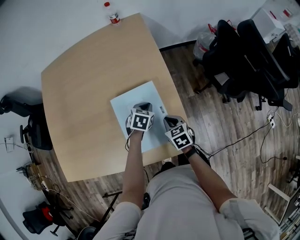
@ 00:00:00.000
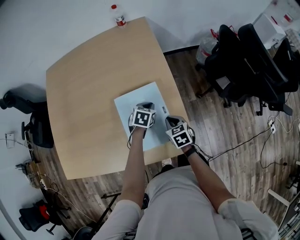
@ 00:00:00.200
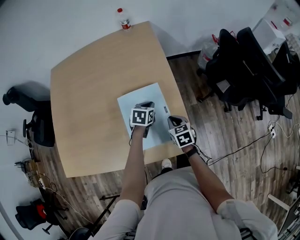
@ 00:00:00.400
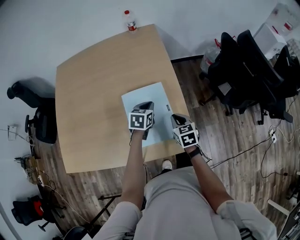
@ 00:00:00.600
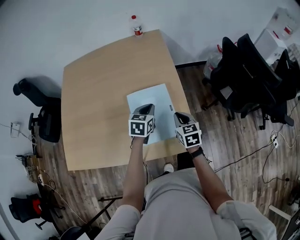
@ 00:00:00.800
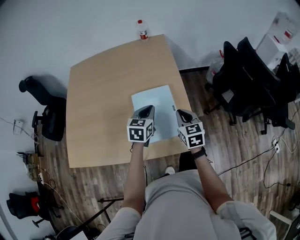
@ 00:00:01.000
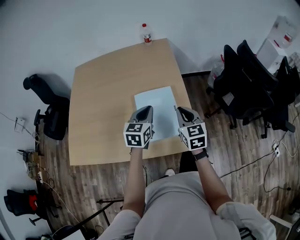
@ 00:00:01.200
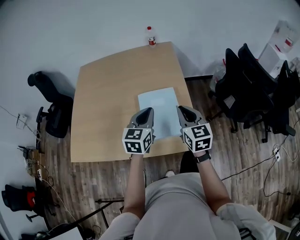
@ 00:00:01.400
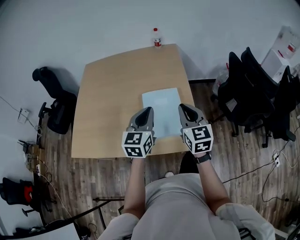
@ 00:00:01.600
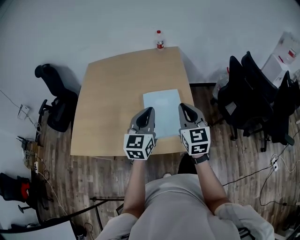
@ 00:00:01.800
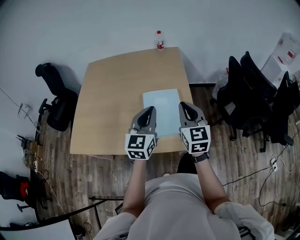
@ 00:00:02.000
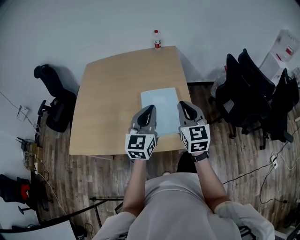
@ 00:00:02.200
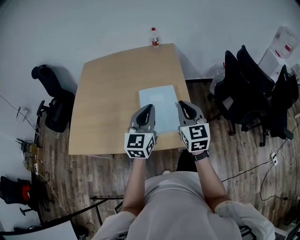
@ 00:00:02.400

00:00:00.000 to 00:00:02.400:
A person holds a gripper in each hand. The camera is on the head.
00:00:00.000 to 00:00:01.200: The right gripper is displaced upward by approximately 20 cm, and rotates some 30 degrees. The left gripper goes approximately 25 cm upward and backward, and angles its fingers upward, by roughly 30 degrees.
00:00:01.200 to 00:00:02.400: Both grippers move upward and backward, roughly 10 cm. The left gripper rotates about 20 degrees.

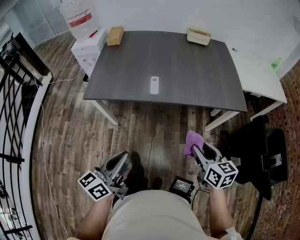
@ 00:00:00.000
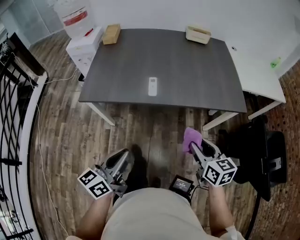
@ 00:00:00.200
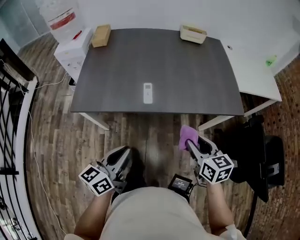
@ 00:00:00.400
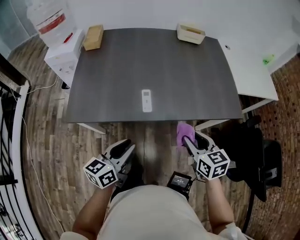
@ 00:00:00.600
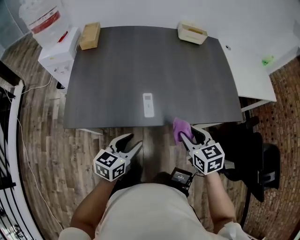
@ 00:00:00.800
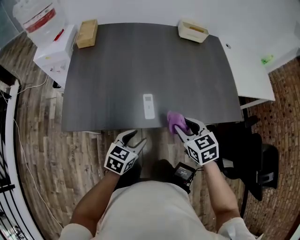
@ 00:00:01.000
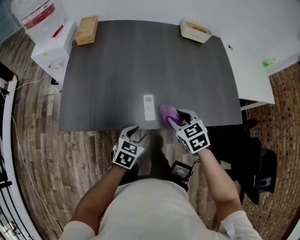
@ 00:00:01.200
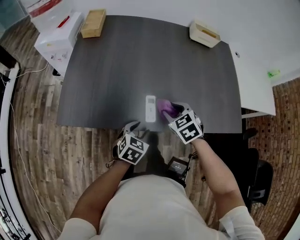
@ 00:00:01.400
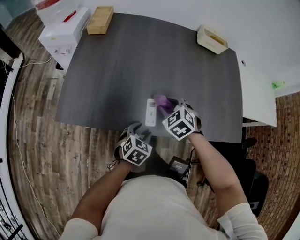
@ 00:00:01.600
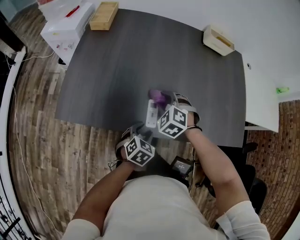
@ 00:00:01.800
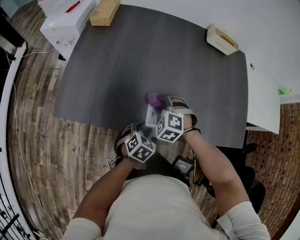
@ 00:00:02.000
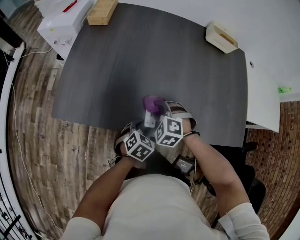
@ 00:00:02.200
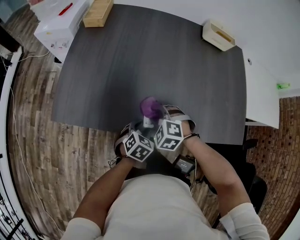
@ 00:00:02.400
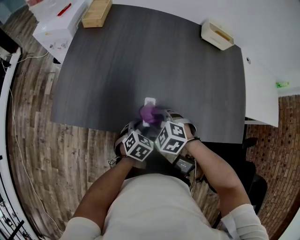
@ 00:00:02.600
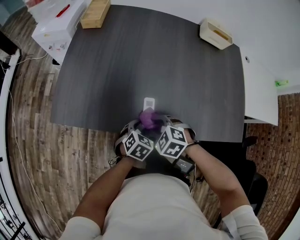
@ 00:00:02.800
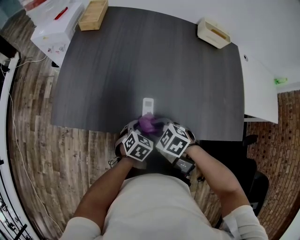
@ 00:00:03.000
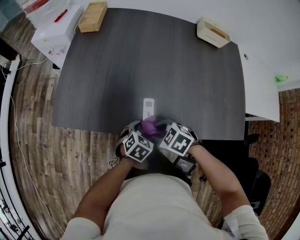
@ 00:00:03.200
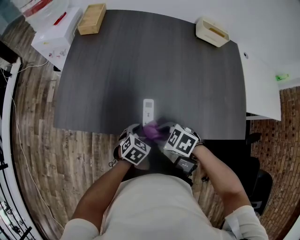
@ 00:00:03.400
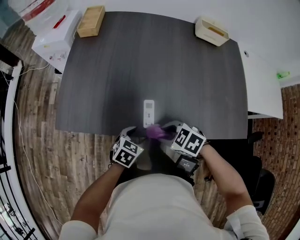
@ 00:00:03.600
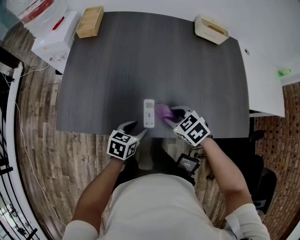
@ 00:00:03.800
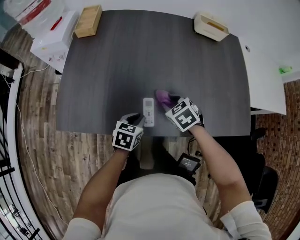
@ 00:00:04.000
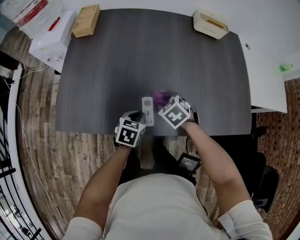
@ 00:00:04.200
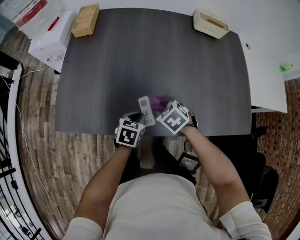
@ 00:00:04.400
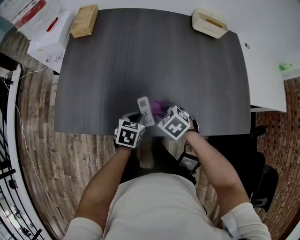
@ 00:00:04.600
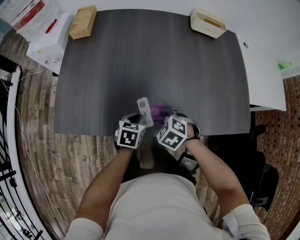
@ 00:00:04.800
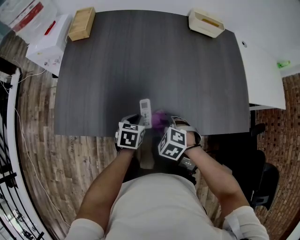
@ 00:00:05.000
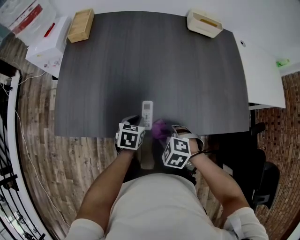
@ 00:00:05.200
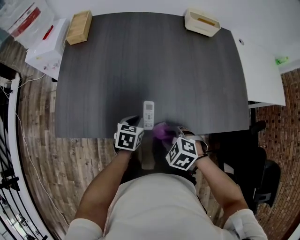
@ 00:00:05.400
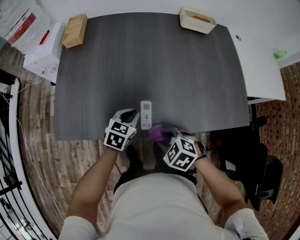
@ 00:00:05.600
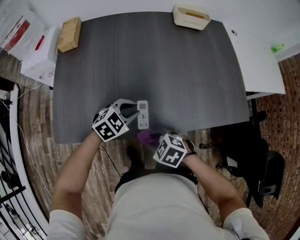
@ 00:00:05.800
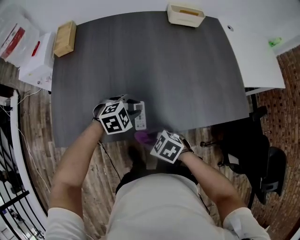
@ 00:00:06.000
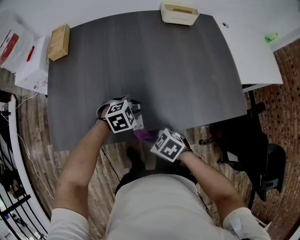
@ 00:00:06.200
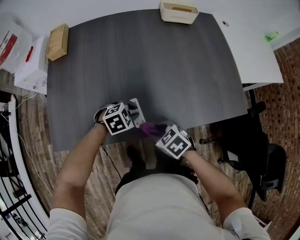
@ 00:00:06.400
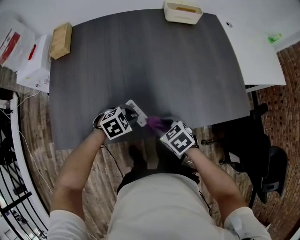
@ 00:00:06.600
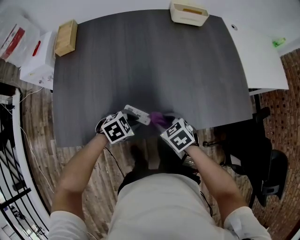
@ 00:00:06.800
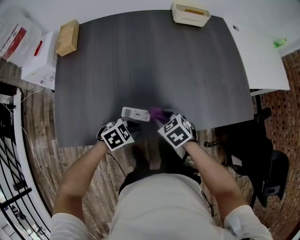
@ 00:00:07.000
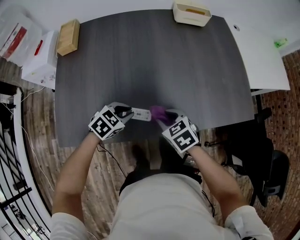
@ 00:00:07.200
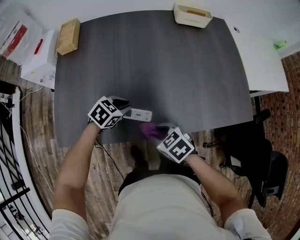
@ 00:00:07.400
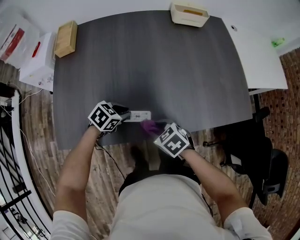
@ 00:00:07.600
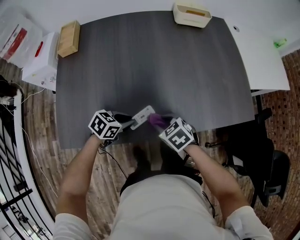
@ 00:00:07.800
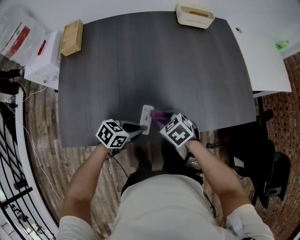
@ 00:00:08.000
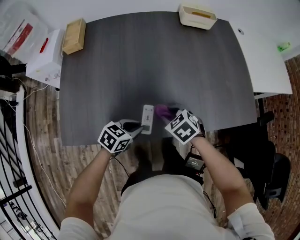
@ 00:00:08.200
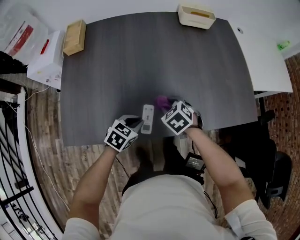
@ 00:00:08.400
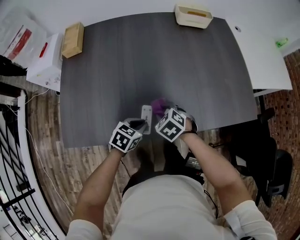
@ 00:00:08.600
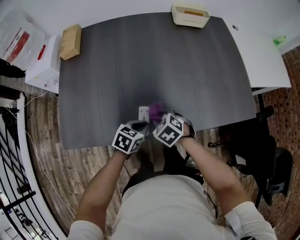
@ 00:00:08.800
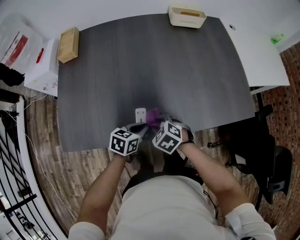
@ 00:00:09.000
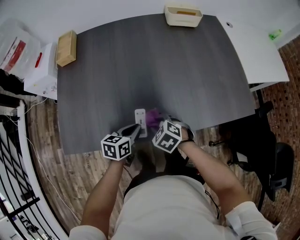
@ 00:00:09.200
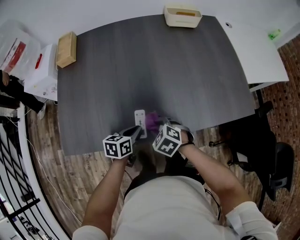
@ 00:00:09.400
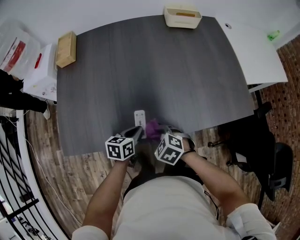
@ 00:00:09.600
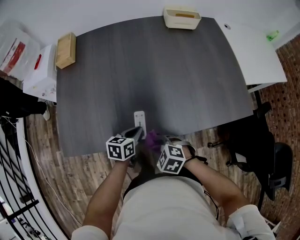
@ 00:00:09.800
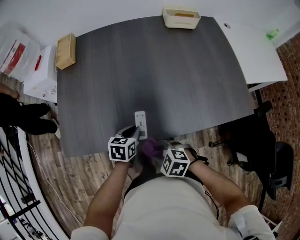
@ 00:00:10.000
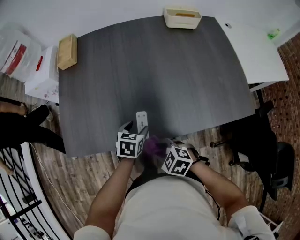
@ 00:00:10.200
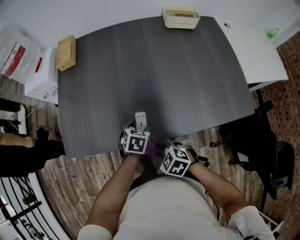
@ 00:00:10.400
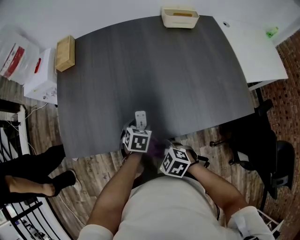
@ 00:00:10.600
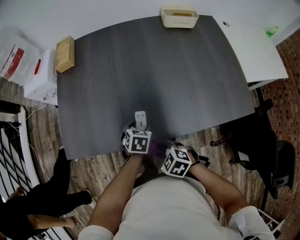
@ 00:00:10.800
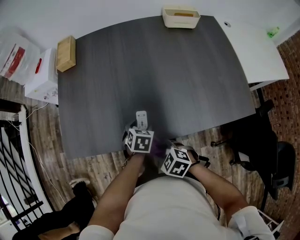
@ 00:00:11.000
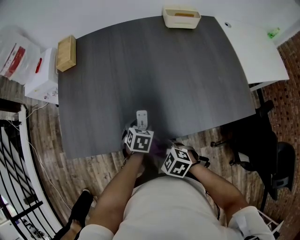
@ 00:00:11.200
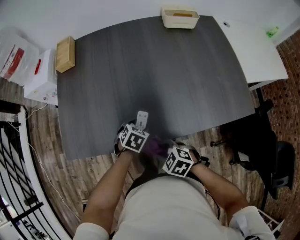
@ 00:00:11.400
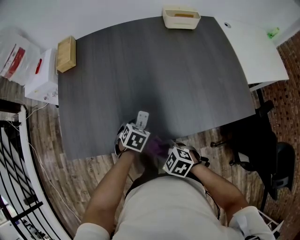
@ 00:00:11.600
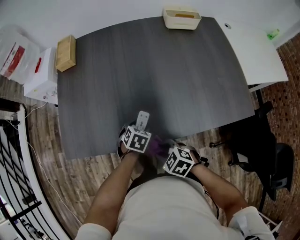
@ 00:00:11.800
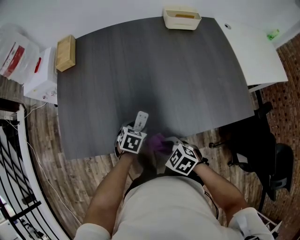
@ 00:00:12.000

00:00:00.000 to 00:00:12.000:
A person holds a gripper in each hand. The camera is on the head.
00:00:00.000 to 00:00:01.600: The left gripper heads forward and downward, covering some 40 cm, tilts its fingers roughly 40 degrees downward, and opens its fingers, while the right gripper is displaced forward and to the left by about 40 cm, and twists roughly 50 degrees counterclockwise, seen from behind.
00:00:01.600 to 00:00:03.000: The right gripper changes place by some 15 cm, and turns by roughly 30 degrees.
00:00:03.000 to 00:00:04.400: The left gripper moves about 5 cm, and closes up. The right gripper moves some 10 cm.
00:00:04.400 to 00:00:06.000: The right gripper ends up roughly 15 cm from where it was. Meanwhile the left gripper goes some 5 cm upward, and rotates around the line of its fingers by about 60 degrees, clockwise from behind.
00:00:06.000 to 00:00:07.600: The left gripper changes place by about 10 cm, and swivels approximately 40 degrees.
00:00:07.600 to 00:00:09.000: The left gripper ends up roughly 10 cm from where it was, and swivels roughly 30 degrees.
00:00:09.000 to 00:00:10.400: The right gripper goes about 10 cm backward. Meanwhile the left gripper rotates roughly 30 degrees, and opens its fingers.
00:00:10.400 to 00:00:12.000: The grippers move only a little.

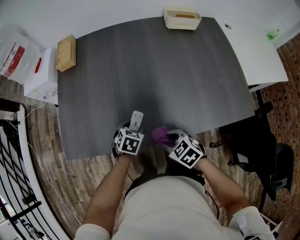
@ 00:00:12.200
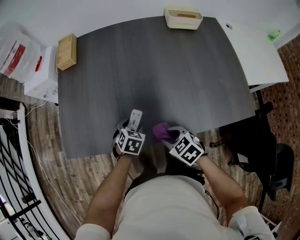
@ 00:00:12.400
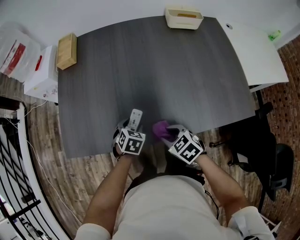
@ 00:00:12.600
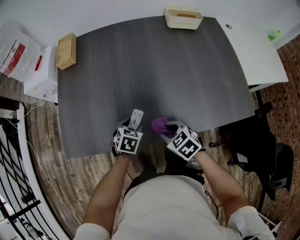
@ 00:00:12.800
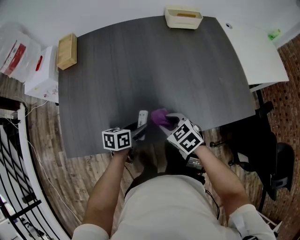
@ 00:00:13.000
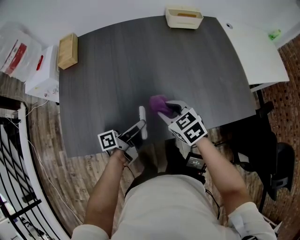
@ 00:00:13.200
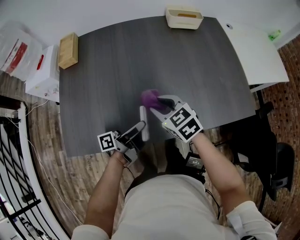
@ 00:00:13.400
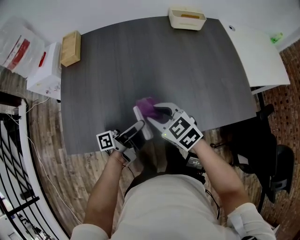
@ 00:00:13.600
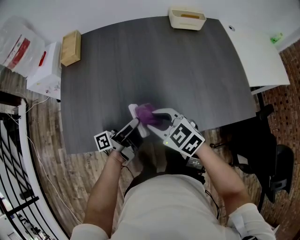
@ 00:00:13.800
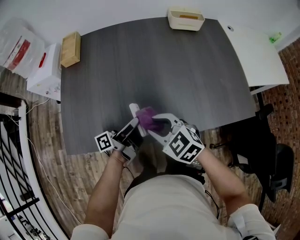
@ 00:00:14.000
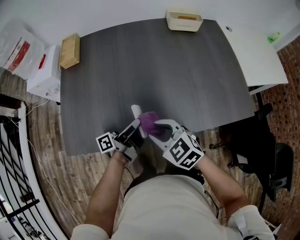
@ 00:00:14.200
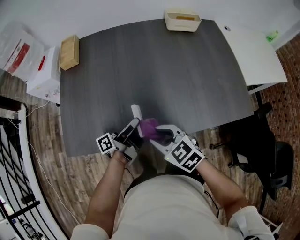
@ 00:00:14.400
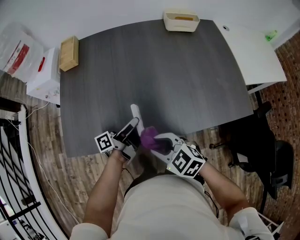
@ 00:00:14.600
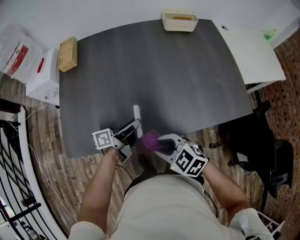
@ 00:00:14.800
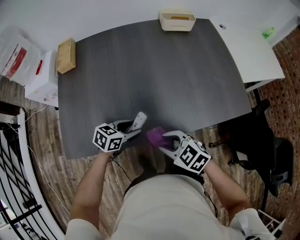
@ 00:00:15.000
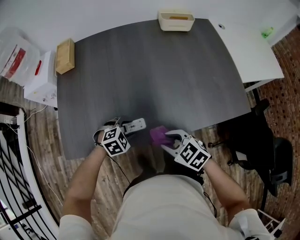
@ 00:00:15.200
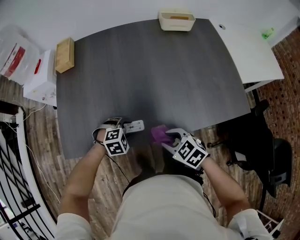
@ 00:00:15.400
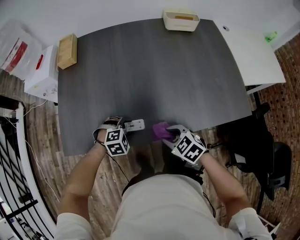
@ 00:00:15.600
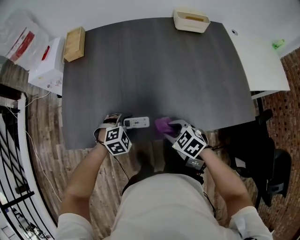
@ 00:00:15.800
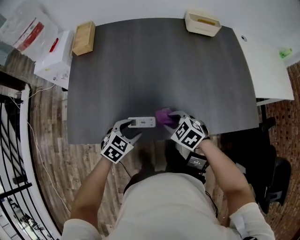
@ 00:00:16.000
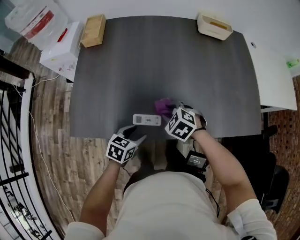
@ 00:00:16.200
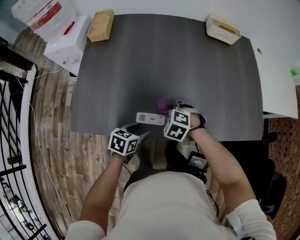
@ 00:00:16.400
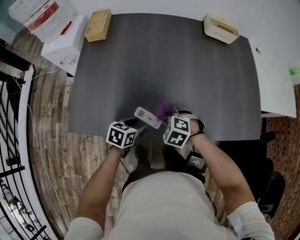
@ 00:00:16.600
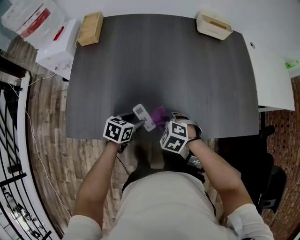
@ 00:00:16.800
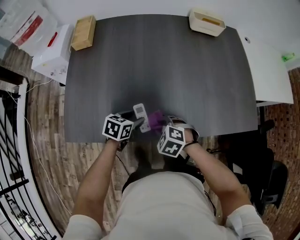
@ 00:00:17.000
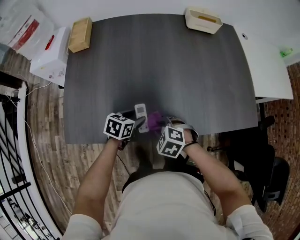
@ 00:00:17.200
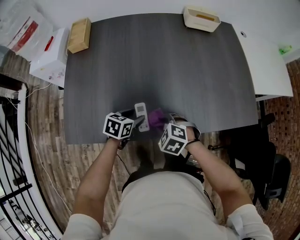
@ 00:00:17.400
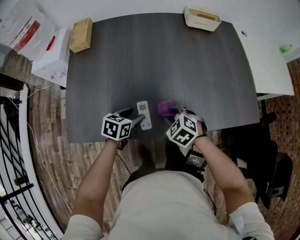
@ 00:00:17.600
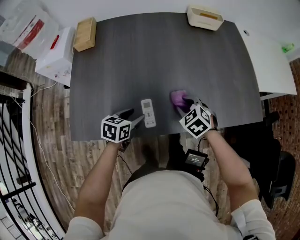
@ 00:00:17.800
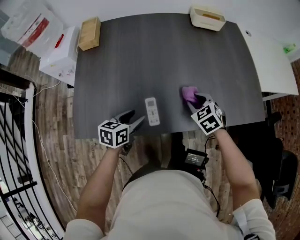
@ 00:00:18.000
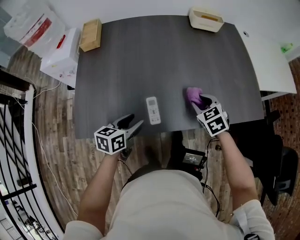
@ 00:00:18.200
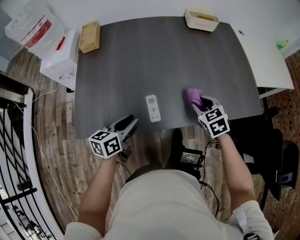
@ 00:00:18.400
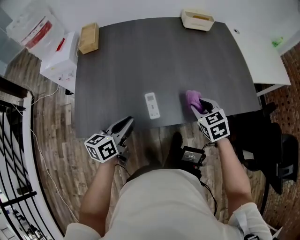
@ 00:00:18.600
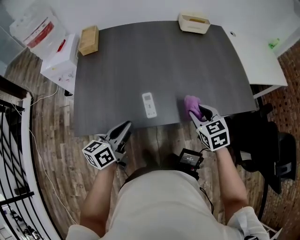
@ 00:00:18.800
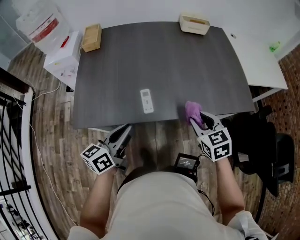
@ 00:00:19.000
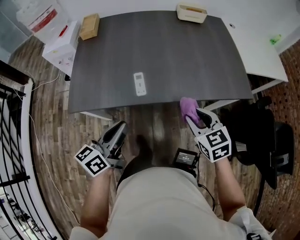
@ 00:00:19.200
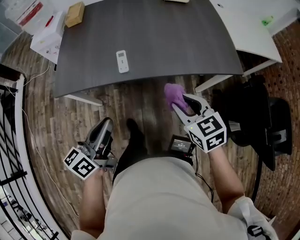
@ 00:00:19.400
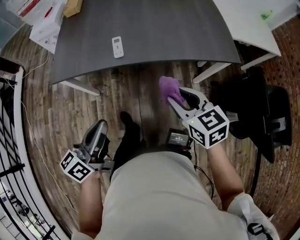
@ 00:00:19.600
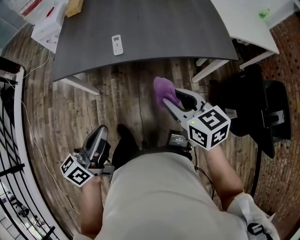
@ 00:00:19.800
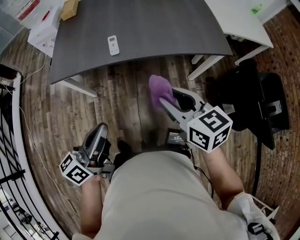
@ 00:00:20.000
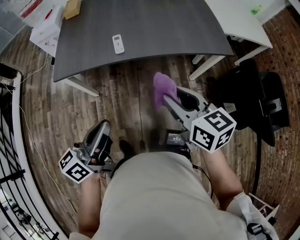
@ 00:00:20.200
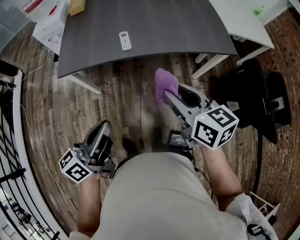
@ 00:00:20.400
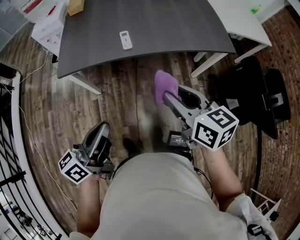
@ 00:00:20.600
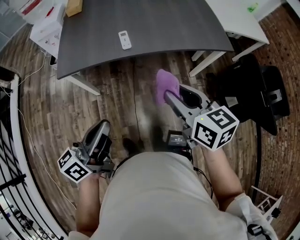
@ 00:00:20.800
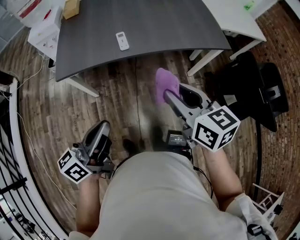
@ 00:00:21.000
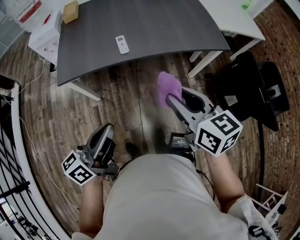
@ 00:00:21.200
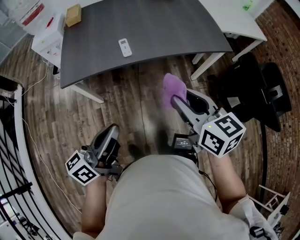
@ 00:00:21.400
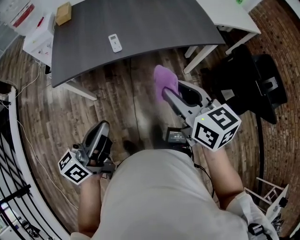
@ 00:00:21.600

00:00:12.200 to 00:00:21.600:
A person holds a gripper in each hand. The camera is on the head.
00:00:12.200 to 00:00:13.800: The right gripper travels upward, forward and to the left by roughly 15 cm, and rotates about 20 degrees. The left gripper travels upward by some 15 cm, and points its fingers roughly 80 degrees further upward.
00:00:13.800 to 00:00:15.400: The left gripper heads downward, covering roughly 10 cm, and tips its fingers downward by roughly 80 degrees. The right gripper changes place by about 15 cm.
00:00:15.400 to 00:00:17.000: The left gripper moves some 5 cm, and rotates around the line of its fingers by some 70 degrees, counterclockwise from behind. The right gripper goes about 10 cm to the left, downward and forward, and changes its angle by roughly 30 degrees.
00:00:17.000 to 00:00:18.400: The left gripper travels upward, backward and to the left by roughly 15 cm, rotates about 30 degrees, and closes its fingers, while the right gripper is displaced to the right, upward and forward by approximately 15 cm, and turns by about 40 degrees.
00:00:18.400 to 00:00:20.000: Both grippers move backward and upward, about 35 cm. The right gripper swivels roughly 30 degrees; the left gripper rotates about 30 degrees, and closes up.
00:00:20.000 to 00:00:21.600: The left gripper shifts some 5 cm to the left, while the right gripper shifts by roughly 5 cm.
